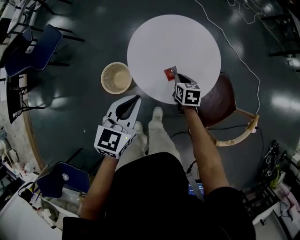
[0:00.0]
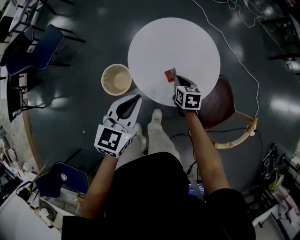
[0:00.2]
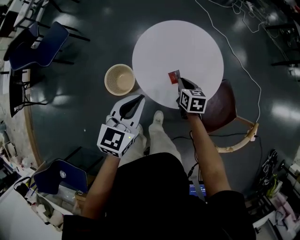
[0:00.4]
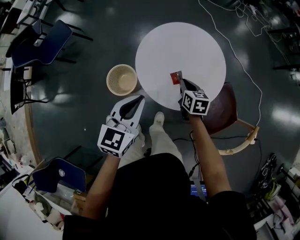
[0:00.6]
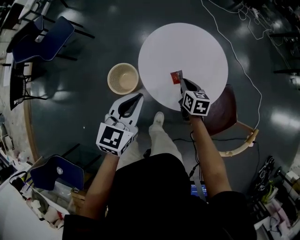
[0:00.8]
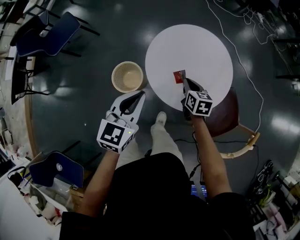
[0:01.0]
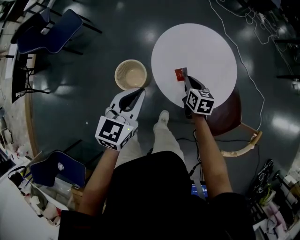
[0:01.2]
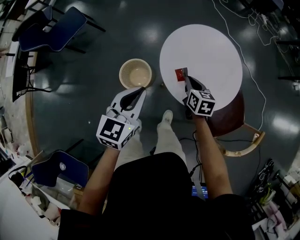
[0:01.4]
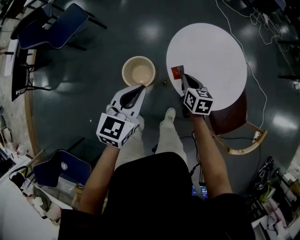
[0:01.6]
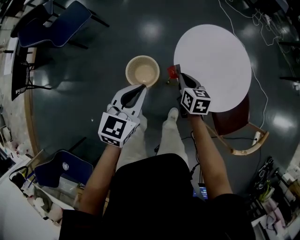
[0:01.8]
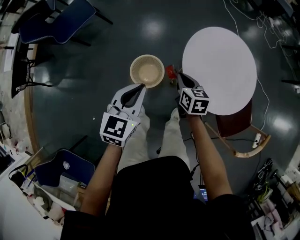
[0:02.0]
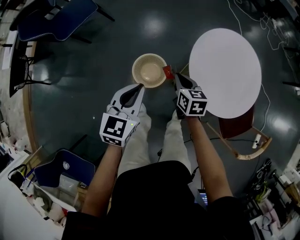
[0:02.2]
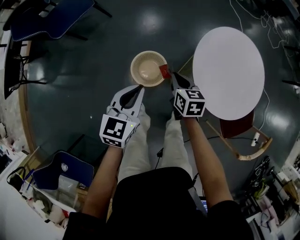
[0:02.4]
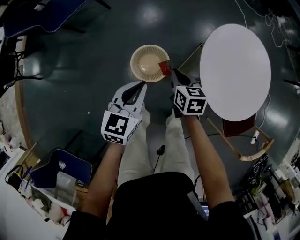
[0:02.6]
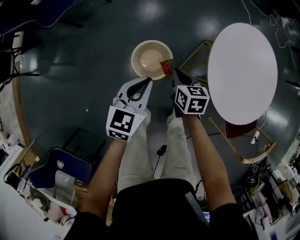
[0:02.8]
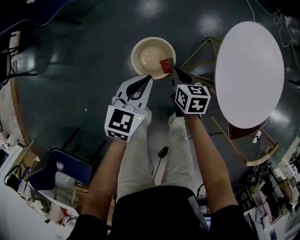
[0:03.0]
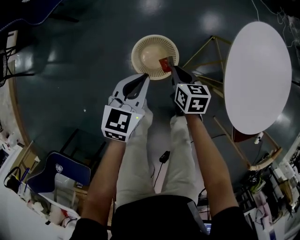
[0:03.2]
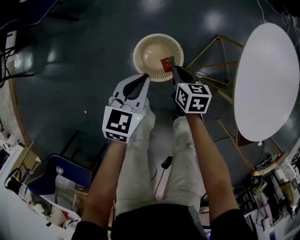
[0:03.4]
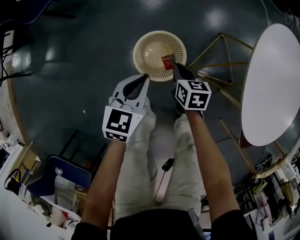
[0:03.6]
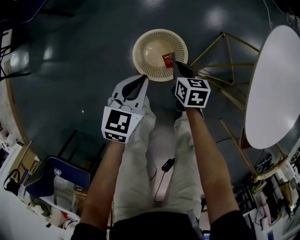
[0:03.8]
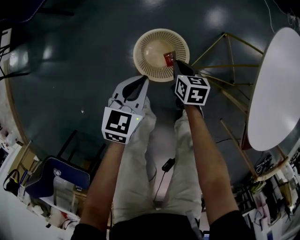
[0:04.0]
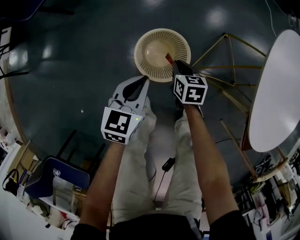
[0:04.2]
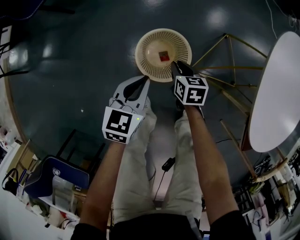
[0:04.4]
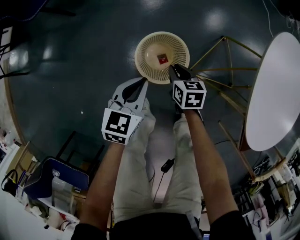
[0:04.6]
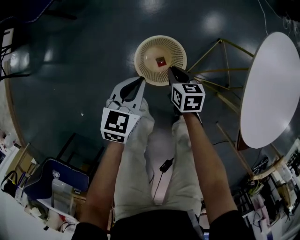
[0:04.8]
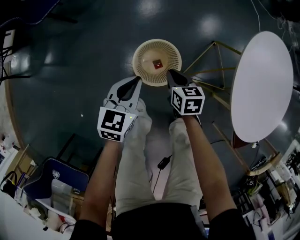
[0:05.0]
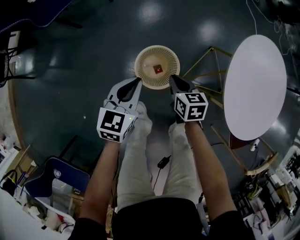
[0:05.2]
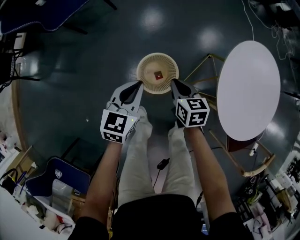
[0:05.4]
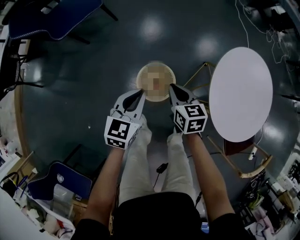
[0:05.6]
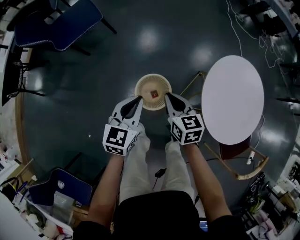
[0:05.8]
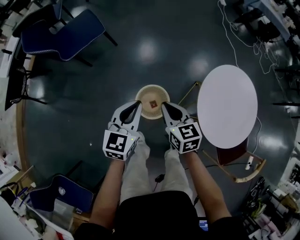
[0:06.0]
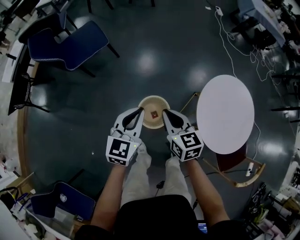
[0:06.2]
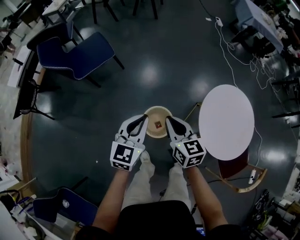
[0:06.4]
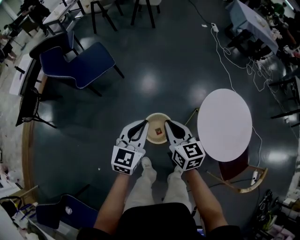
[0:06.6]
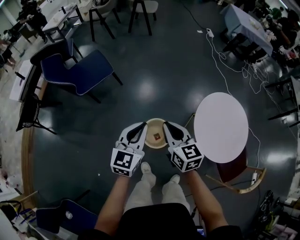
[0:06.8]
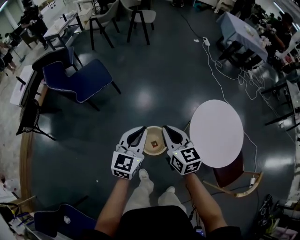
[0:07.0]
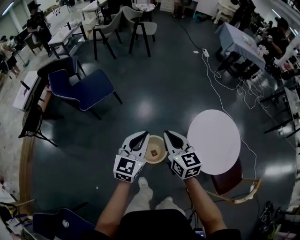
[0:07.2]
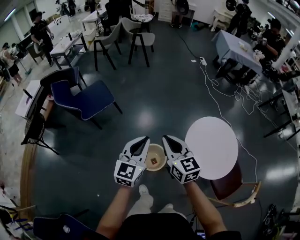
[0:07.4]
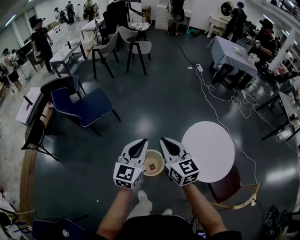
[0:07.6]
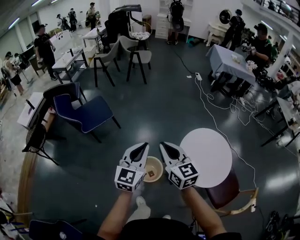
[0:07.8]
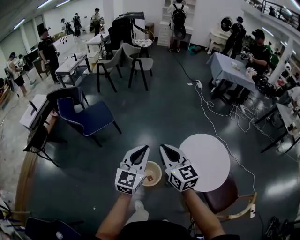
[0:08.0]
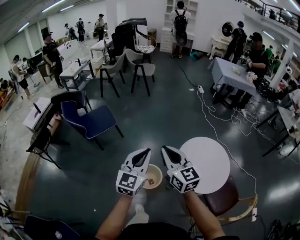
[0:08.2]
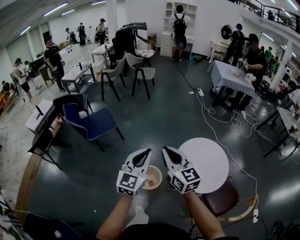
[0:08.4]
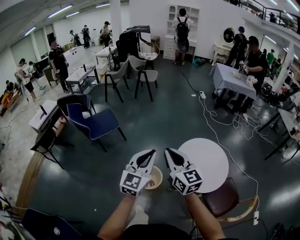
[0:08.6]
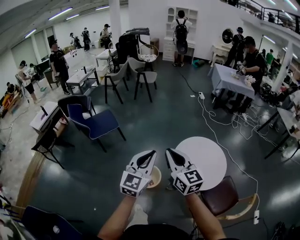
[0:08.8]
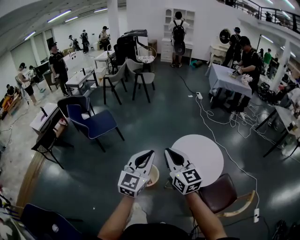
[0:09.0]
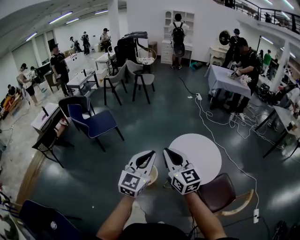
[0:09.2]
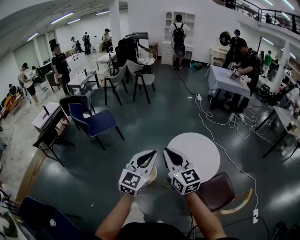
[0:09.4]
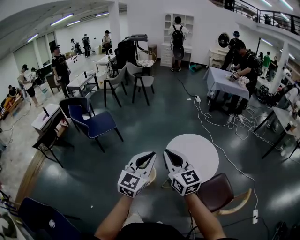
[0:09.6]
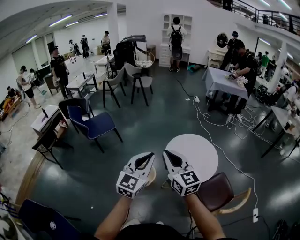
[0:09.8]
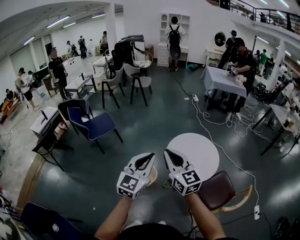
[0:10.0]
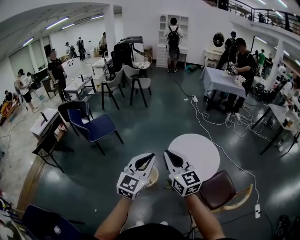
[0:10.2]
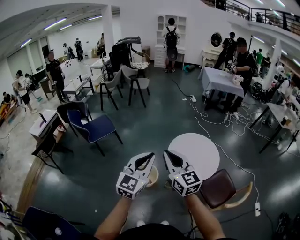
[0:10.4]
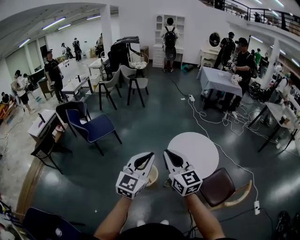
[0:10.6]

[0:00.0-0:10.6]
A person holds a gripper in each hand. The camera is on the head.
0:00.0 to 0:01.6: The two grippers go some 20 cm to the left.
0:01.6 to 0:03.0: The right gripper goes about 30 cm to the left and downward; the left gripper moves downward and to the left, some 30 cm.
0:03.0 to 0:04.6: The two grippers go some 20 cm downward.
0:04.6 to 0:06.0: The grippers both shift upward by approximately 40 cm. The right gripper rotates roughly 20 degrees.
0:06.0 to 0:07.6: The grippers both shift upward by about 30 cm. The right gripper turns by about 20 degrees.
0:07.6 to 0:09.0: Both grippers travel together backward, to the right and upward, about 30 cm.
0:09.0 to 0:10.6: Both grippers travel together backward, roughly 10 cm.

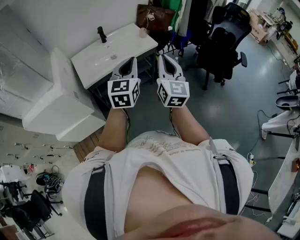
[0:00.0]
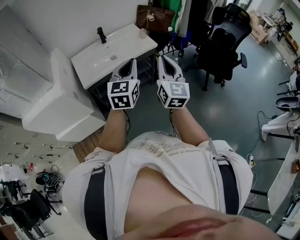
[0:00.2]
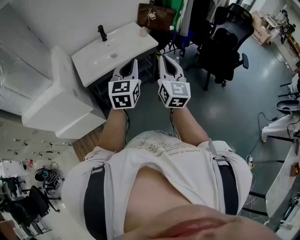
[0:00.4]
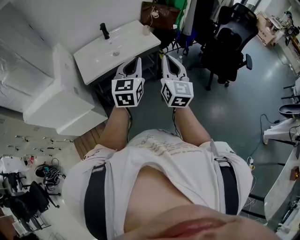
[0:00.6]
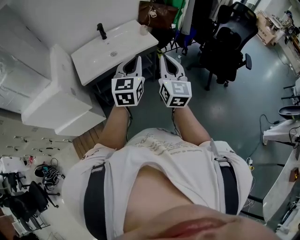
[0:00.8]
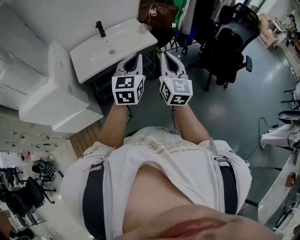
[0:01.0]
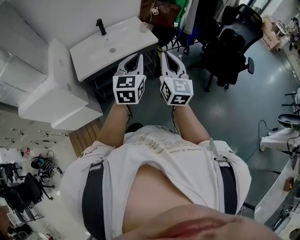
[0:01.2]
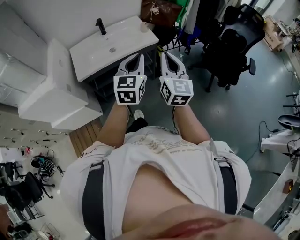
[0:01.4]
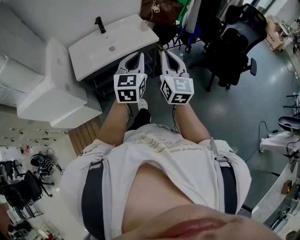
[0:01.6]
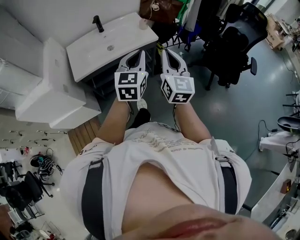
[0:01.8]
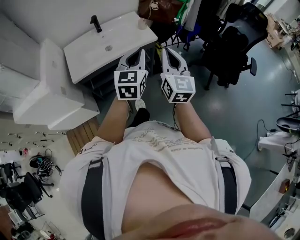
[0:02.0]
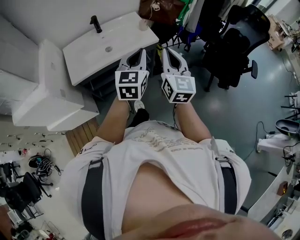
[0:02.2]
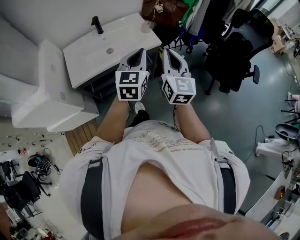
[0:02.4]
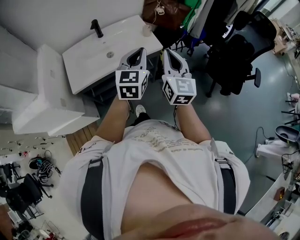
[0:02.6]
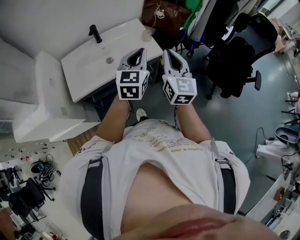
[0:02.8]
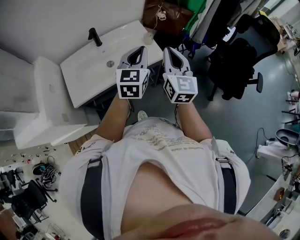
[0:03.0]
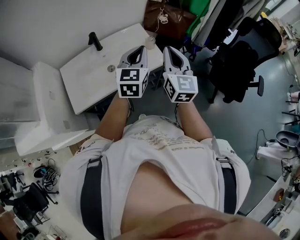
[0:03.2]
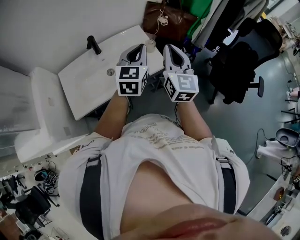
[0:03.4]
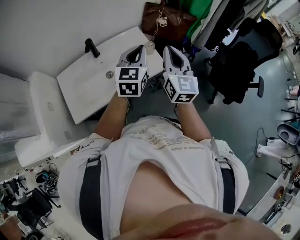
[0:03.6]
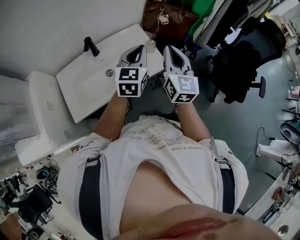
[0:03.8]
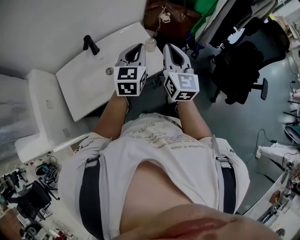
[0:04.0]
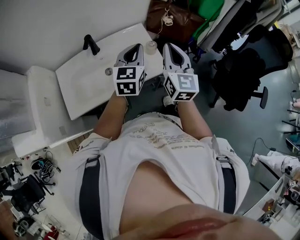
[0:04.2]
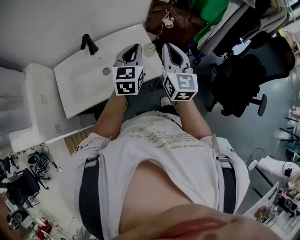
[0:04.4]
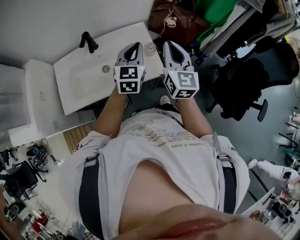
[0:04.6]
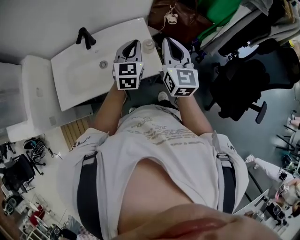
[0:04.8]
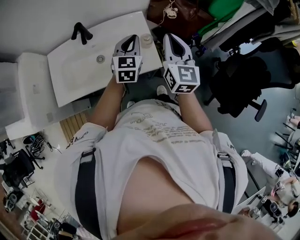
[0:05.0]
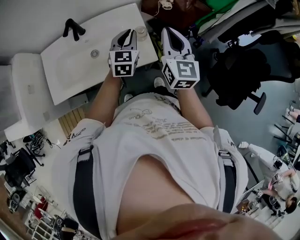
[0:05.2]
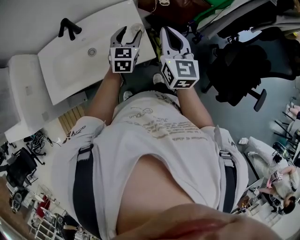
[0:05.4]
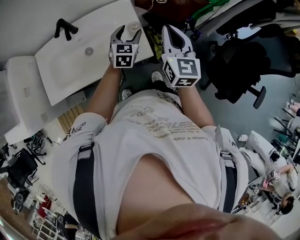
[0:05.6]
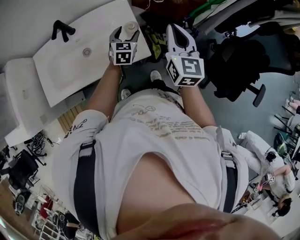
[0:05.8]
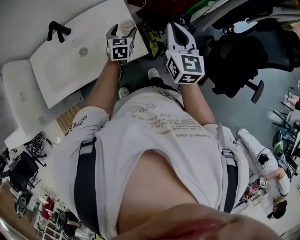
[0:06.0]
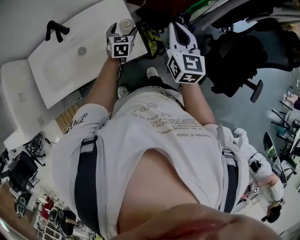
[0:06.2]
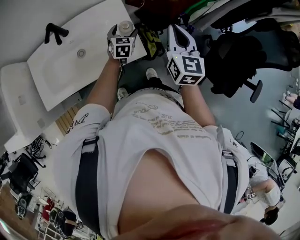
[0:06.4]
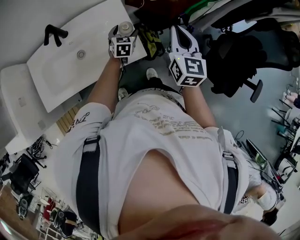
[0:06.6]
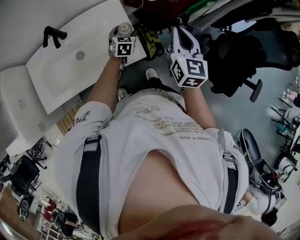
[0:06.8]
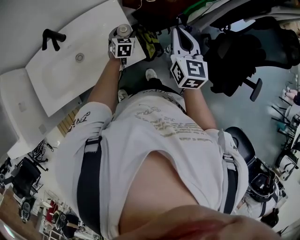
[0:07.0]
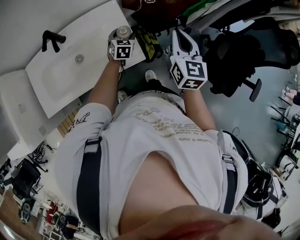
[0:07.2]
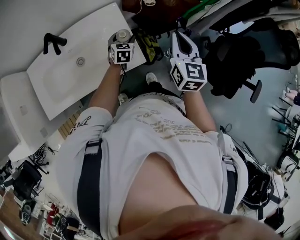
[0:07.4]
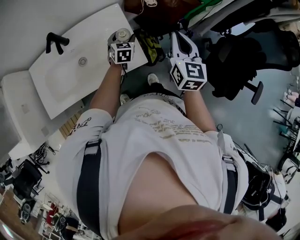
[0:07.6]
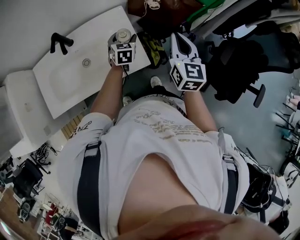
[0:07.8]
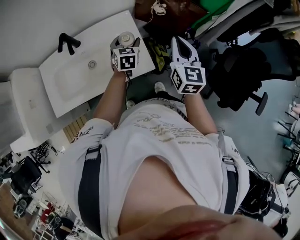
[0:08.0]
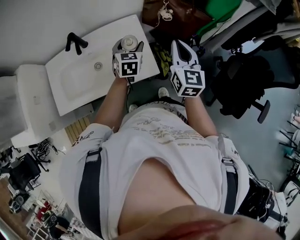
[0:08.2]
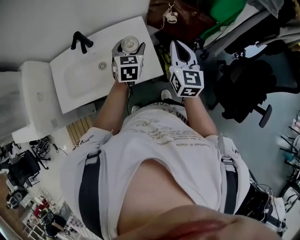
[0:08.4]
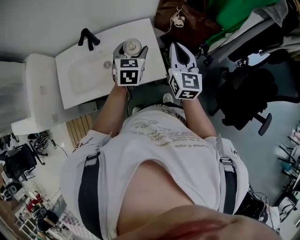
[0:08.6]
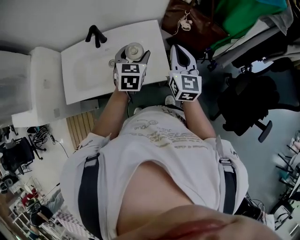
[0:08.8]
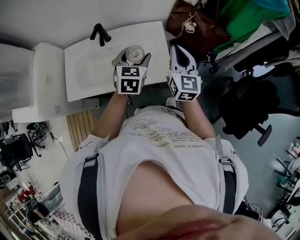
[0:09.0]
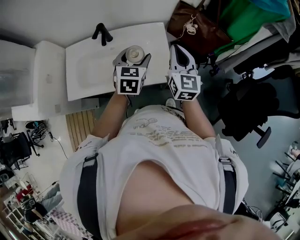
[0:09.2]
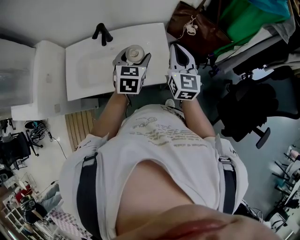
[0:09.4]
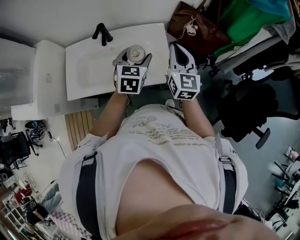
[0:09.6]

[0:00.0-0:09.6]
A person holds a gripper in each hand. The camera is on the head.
0:00.0 to 0:01.6: The left gripper moves to the right and forward, about 10 cm. Meanwhile the right gripper travels forward and to the right by roughly 10 cm.
0:01.6 to 0:03.2: The two grippers go some 30 cm forward.
0:03.2 to 0:04.8: The right gripper moves forward, approximately 15 cm; the left gripper heads forward and downward, covering approximately 20 cm.
0:04.8 to 0:06.4: The right gripper goes some 10 cm to the right and downward. The left gripper heads downward, covering approximately 20 cm, and opens up.
0:06.4 to 0:08.0: The left gripper heads upward, covering some 5 cm.
0:08.0 to 0:09.6: The right gripper goes some 10 cm to the left. Meanwhile the left gripper moves upward, backward and to the left, approximately 15 cm.

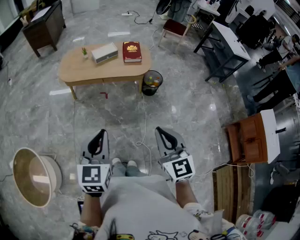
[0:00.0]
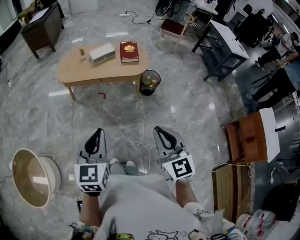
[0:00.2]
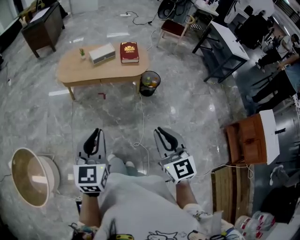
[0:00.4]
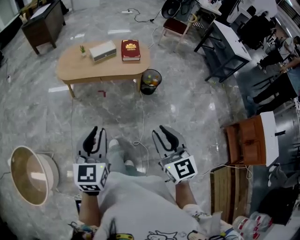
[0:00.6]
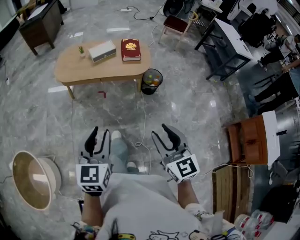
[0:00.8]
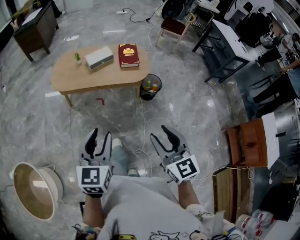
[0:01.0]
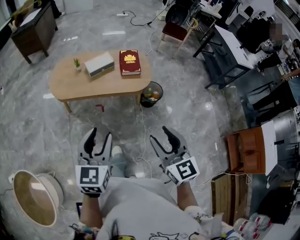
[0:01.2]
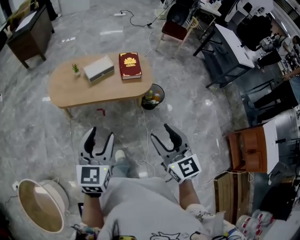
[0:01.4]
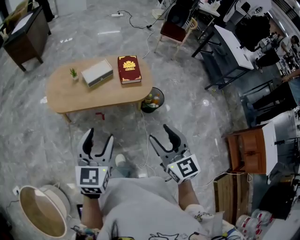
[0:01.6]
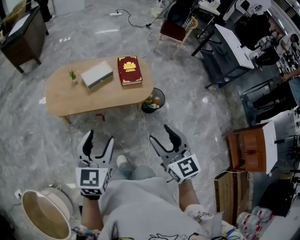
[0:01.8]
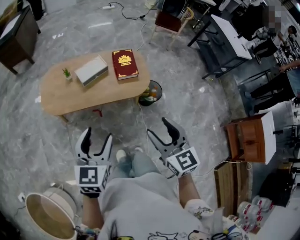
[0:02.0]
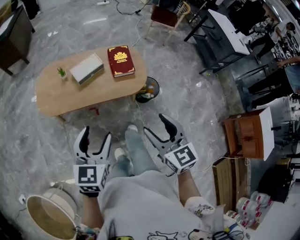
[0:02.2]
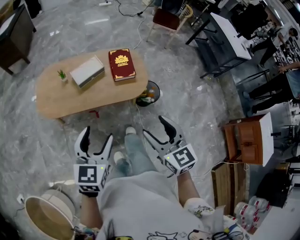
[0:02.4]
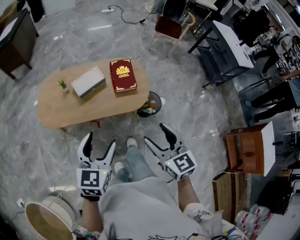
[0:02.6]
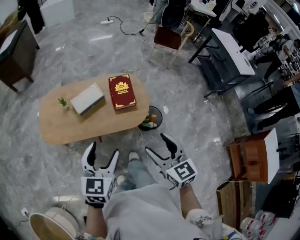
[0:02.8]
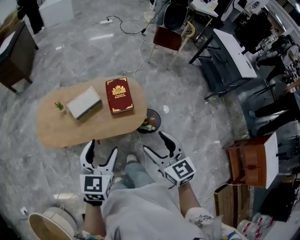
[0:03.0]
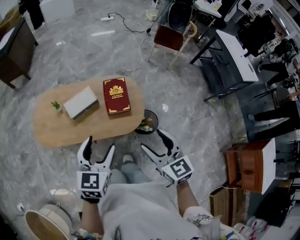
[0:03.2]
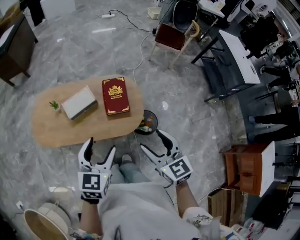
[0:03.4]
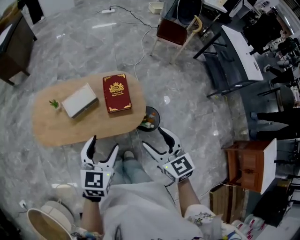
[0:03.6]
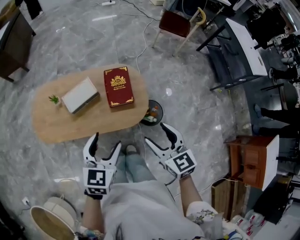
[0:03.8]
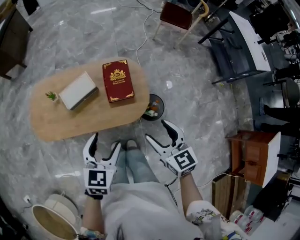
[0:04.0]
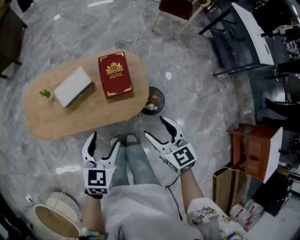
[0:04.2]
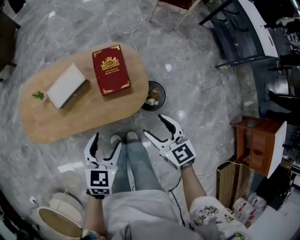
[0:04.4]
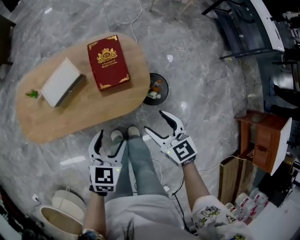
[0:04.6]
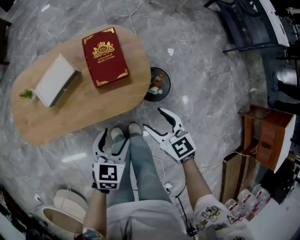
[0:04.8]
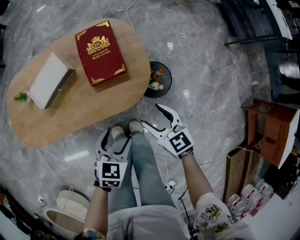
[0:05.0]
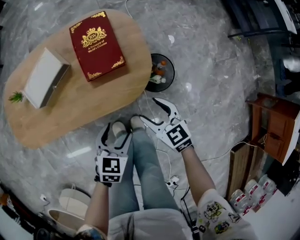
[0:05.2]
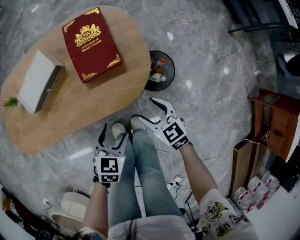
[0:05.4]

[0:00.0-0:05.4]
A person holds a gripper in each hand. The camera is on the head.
0:00.0 to 0:01.4: The two grippers go approximately 25 cm forward. The right gripper opens, while the left gripper opens.
0:01.4 to 0:02.8: Both grippers move forward, some 20 cm.
0:02.8 to 0:04.0: The grippers both shift forward, downward and to the right by about 15 cm.
0:04.0 to 0:05.4: The two grippers go some 35 cm downward. The left gripper swivels about 20 degrees.
